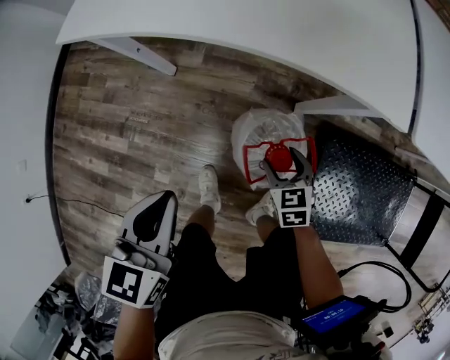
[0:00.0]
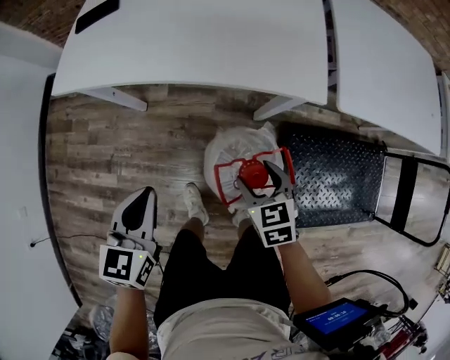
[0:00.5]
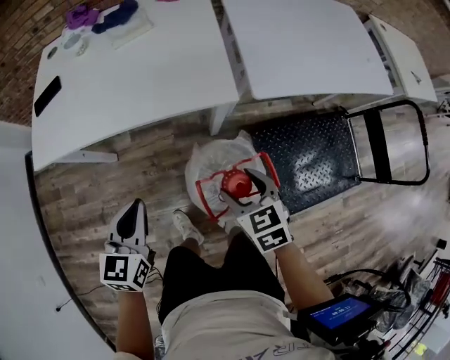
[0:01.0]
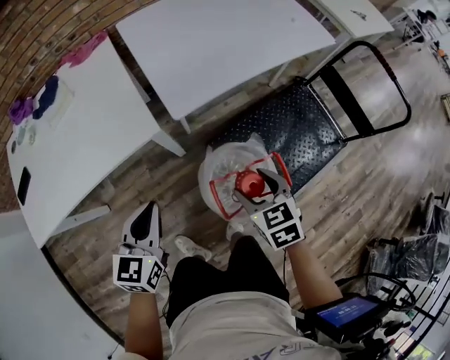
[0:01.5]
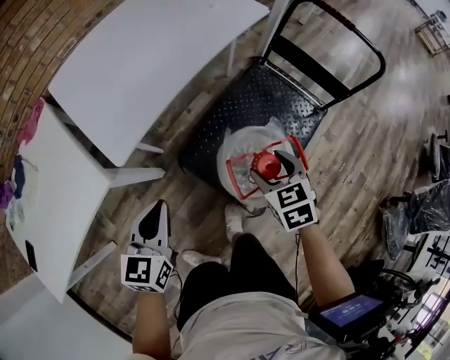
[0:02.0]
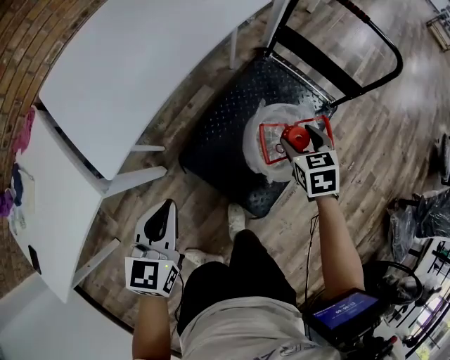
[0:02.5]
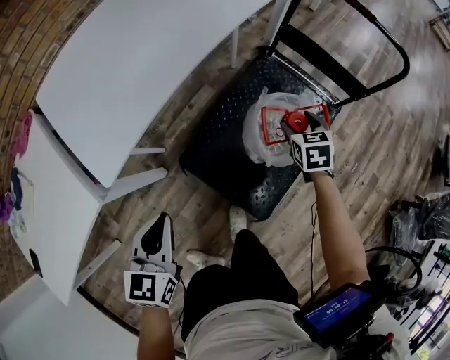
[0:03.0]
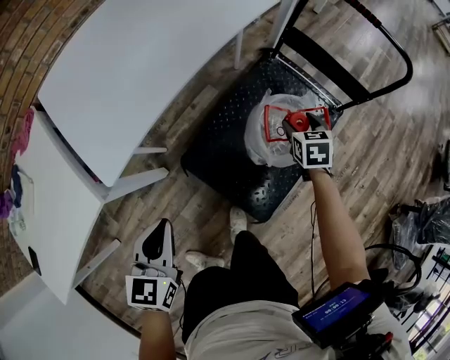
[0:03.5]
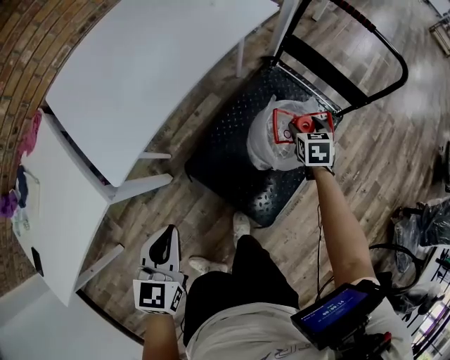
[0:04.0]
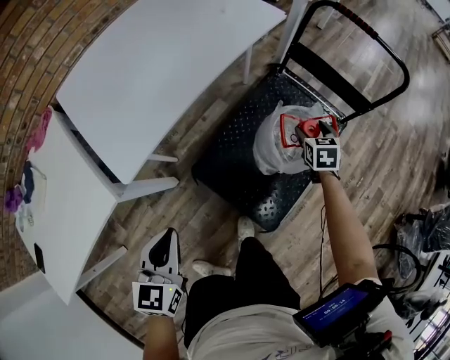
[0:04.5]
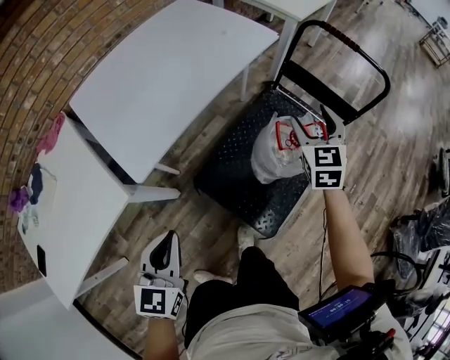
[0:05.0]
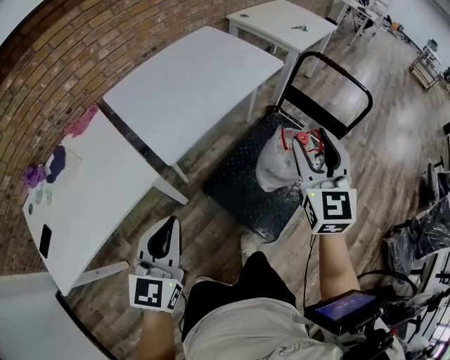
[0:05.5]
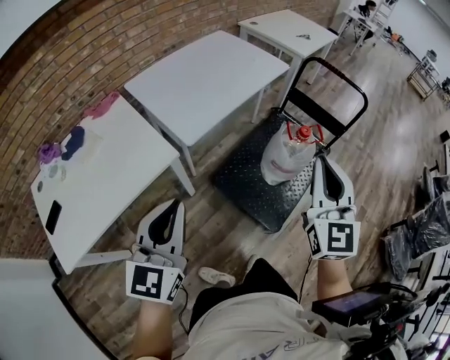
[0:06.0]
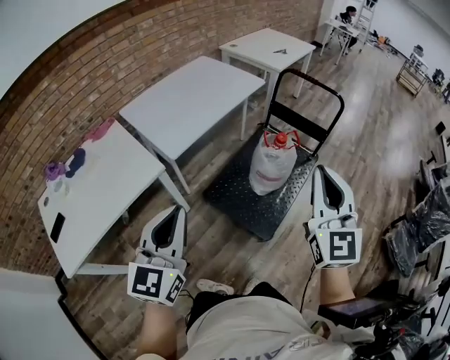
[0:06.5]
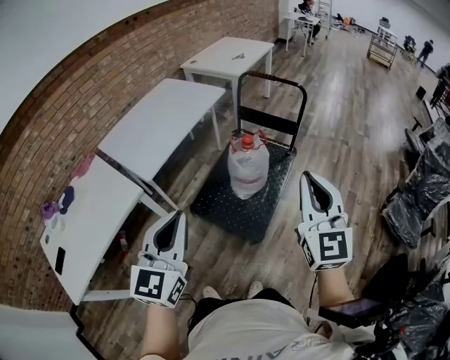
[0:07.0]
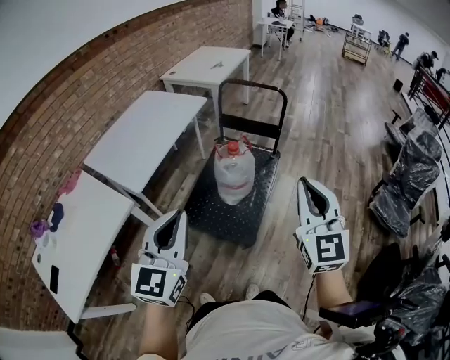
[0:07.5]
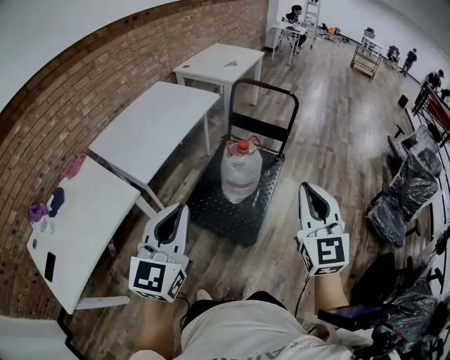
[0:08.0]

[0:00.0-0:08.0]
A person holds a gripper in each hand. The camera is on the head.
0.0 to 2.0 s: The two grippers travel together, roughly 50 cm. The right gripper turns by roughly 60 degrees. Meanwhile the left gripper rotates some 60 degrees.
2.0 to 4.0 s: The right gripper moves forward, to the right and downward, some 25 cm, and rotates some 20 degrees.
4.0 to 6.0 s: The right gripper moves upward and backward, roughly 60 cm, tilts its fingers approximately 50 degrees upward, and closes up. The left gripper goes about 35 cm upward and backward, and changes its angle by approximately 30 degrees.
6.0 to 8.0 s: The right gripper shifts some 20 cm to the right and backward, while the left gripper goes approximately 15 cm to the right.

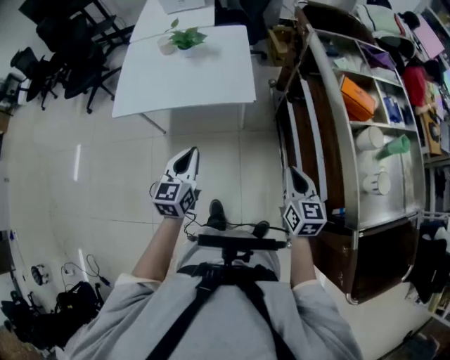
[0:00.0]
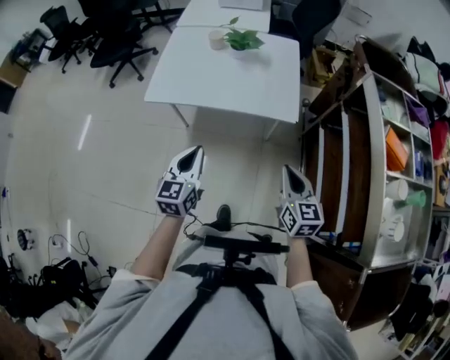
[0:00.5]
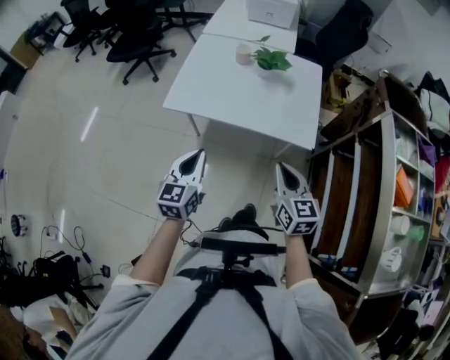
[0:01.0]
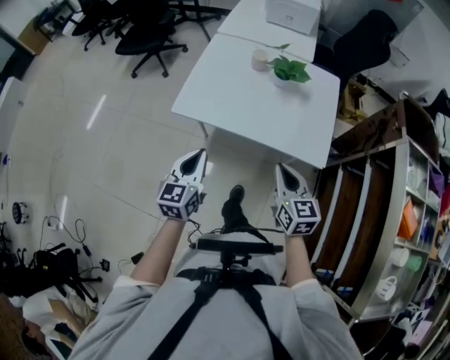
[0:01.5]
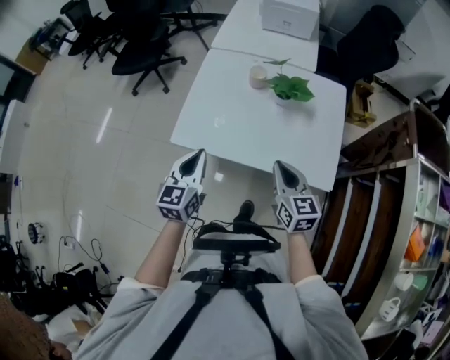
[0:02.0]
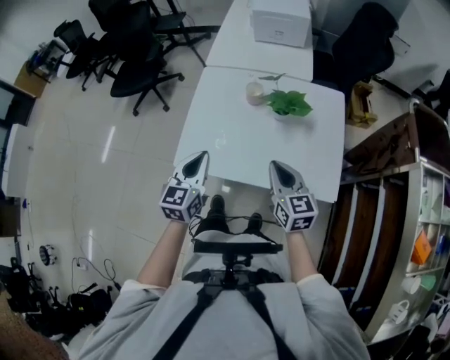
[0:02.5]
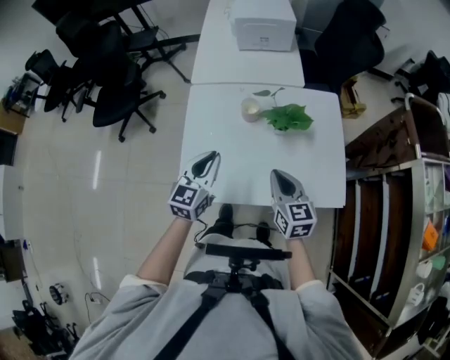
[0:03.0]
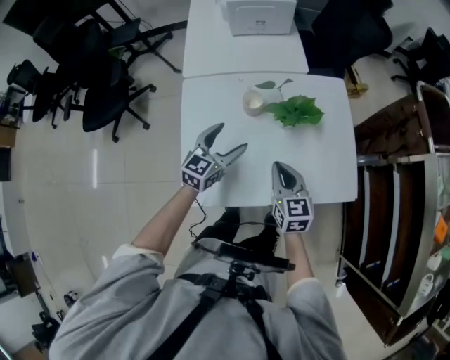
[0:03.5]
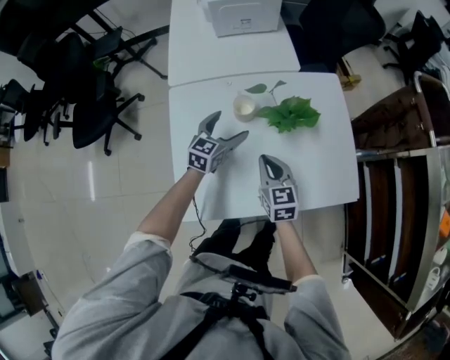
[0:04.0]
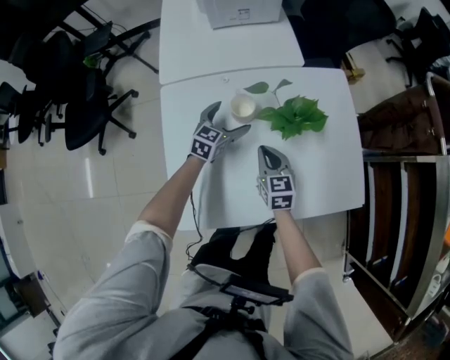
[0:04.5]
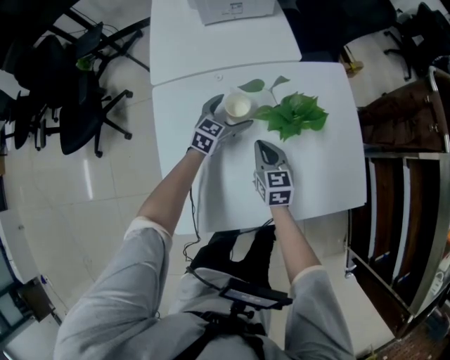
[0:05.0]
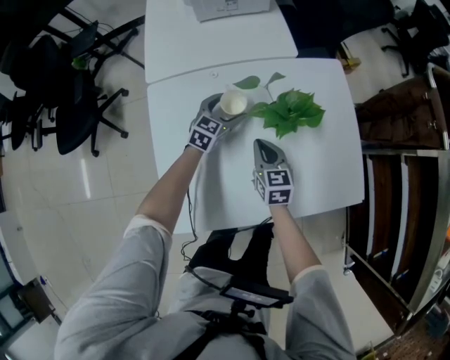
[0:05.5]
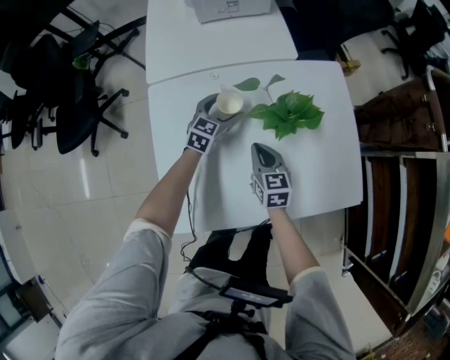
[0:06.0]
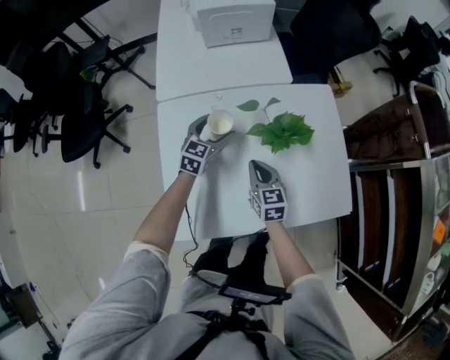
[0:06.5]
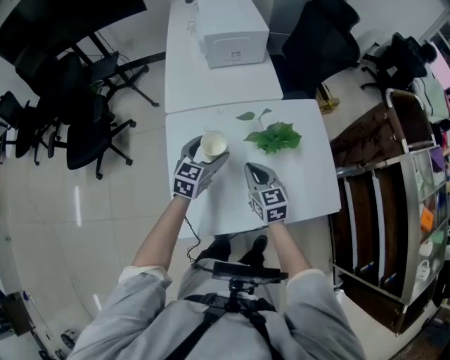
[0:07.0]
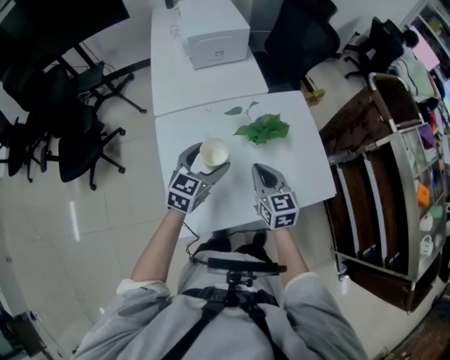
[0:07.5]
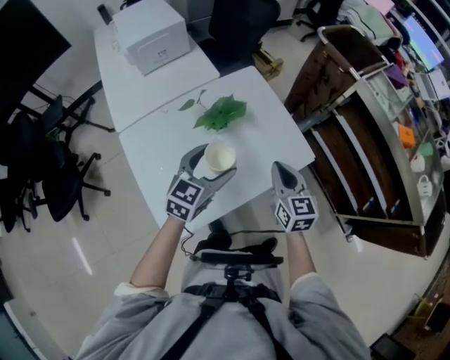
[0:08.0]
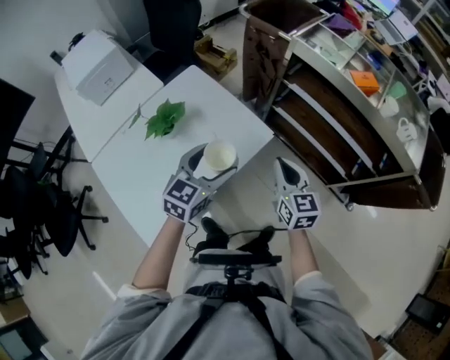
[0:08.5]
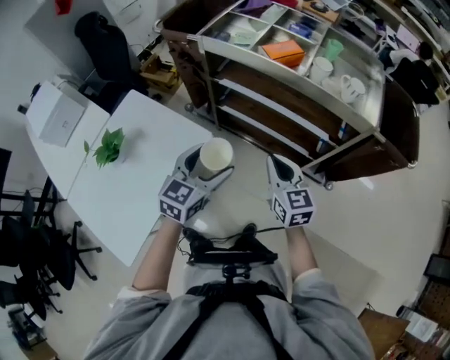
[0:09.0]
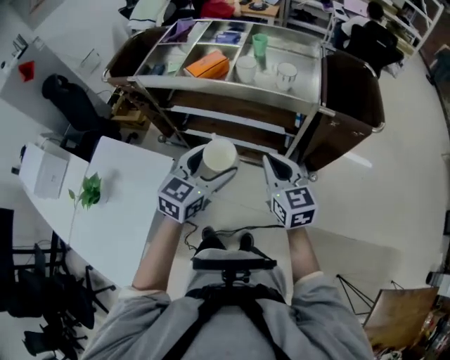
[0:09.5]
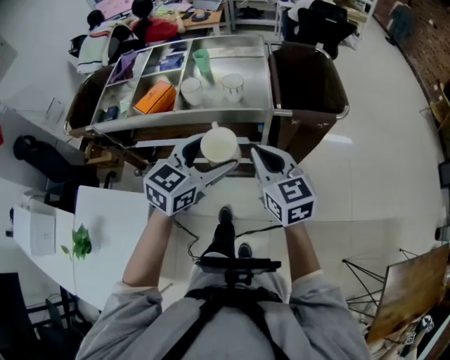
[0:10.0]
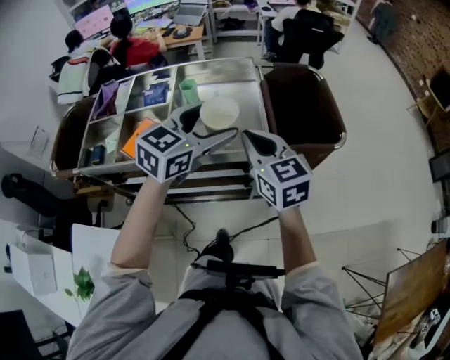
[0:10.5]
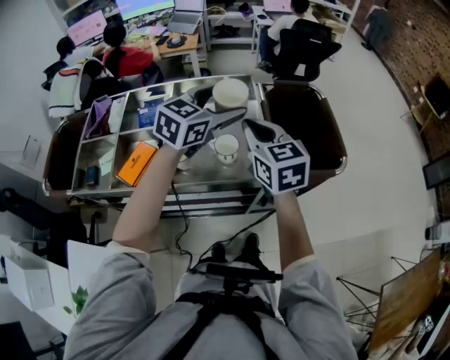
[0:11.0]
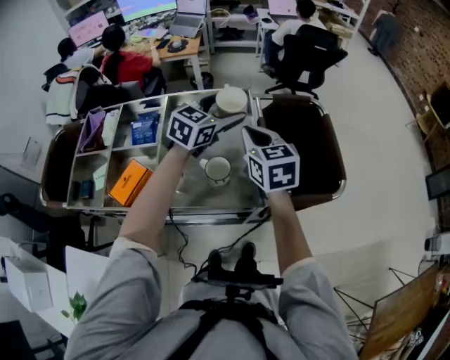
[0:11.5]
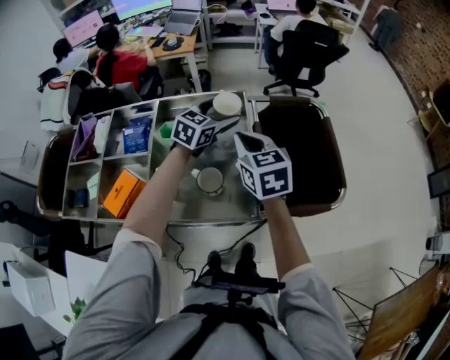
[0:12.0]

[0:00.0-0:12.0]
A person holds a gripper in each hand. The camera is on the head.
0.0 to 2.0 s: Both grippers move forward and to the left, some 40 cm. The right gripper rotates about 20 degrees.
2.0 to 4.0 s: The left gripper shifts by about 40 cm, rotates about 40 degrees, and opens up. Meanwhile the right gripper moves approximately 30 cm, and changes its angle by some 20 degrees.
4.0 to 6.0 s: The right gripper is displaced downward and forward by about 10 cm; the left gripper goes some 15 cm forward and downward.
6.0 to 8.0 s: The left gripper shifts by about 35 cm, and changes its angle by about 20 degrees; the right gripper changes place by about 30 cm, and swivels approximately 30 degrees.
8.0 to 10.0 s: The pair of grippers is taken roughly 70 cm. The right gripper rotates some 40 degrees. The left gripper turns by approximately 60 degrees.
10.0 to 12.0 s: The two grippers go roughly 40 cm forward.

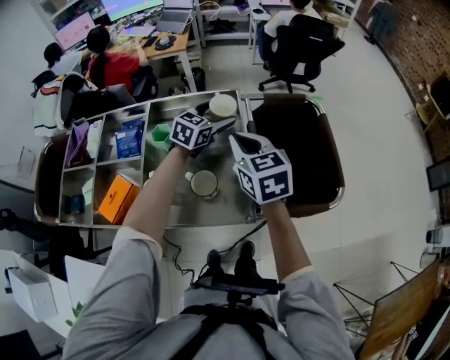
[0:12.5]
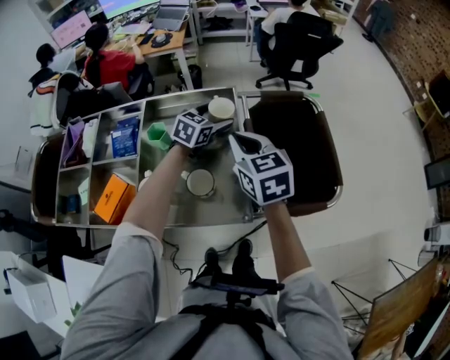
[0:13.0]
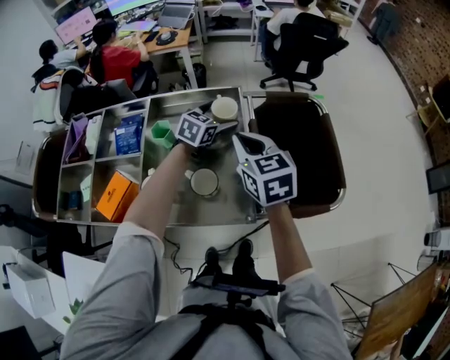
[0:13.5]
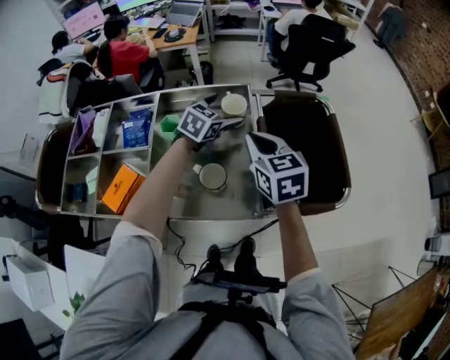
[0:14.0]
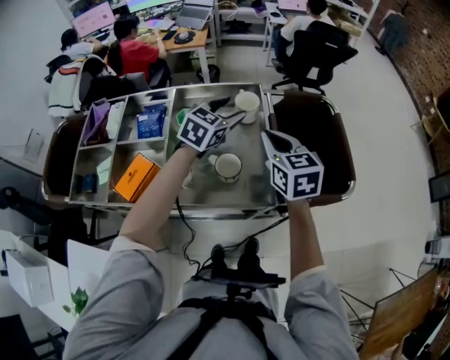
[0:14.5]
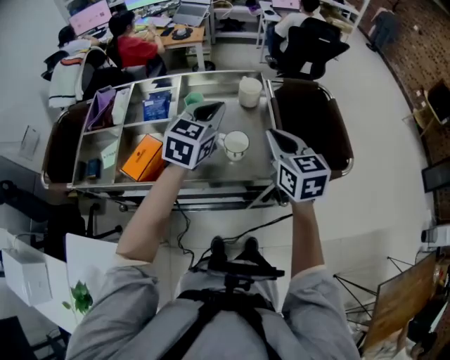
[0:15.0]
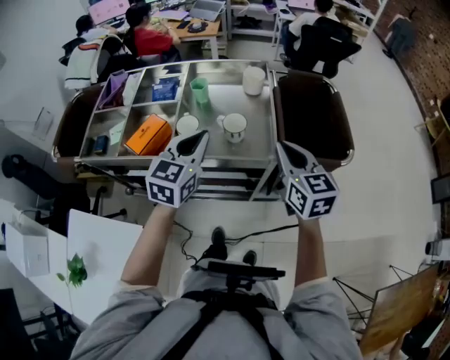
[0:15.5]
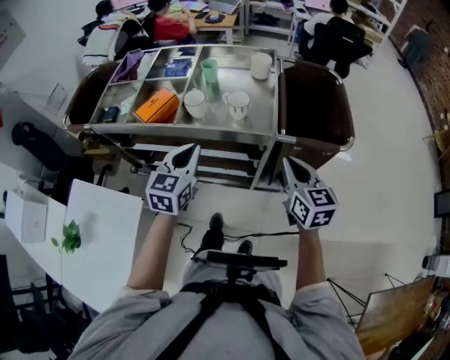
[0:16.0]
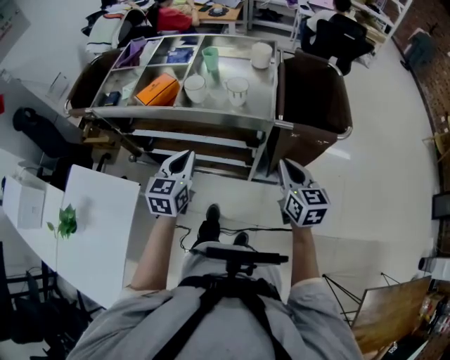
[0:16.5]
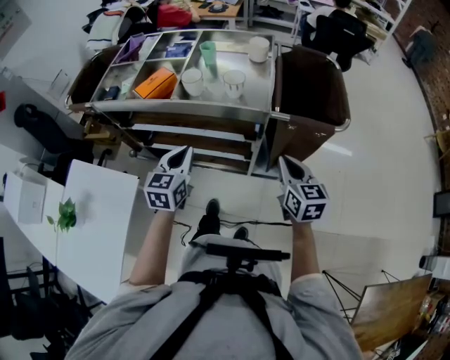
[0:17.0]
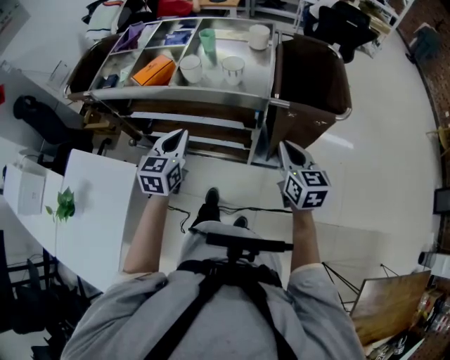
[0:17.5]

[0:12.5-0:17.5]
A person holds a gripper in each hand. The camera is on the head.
12.5 to 15.0 s: The left gripper goes some 25 cm backward, upward and to the left, and closes its fingers, while the right gripper moves backward, about 10 cm.
15.0 to 17.5 s: Both grippers travel together backward and downward, roughly 30 cm. The left gripper changes its angle by roughly 30 degrees.

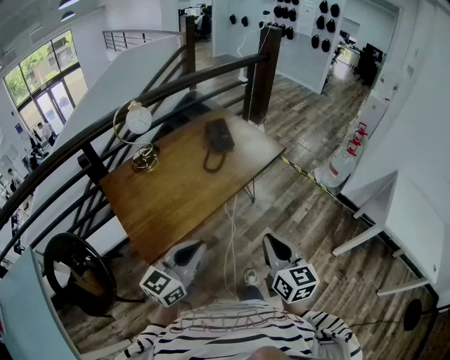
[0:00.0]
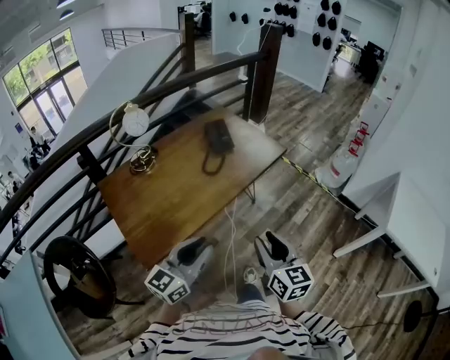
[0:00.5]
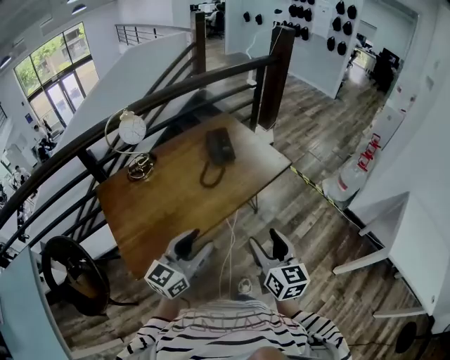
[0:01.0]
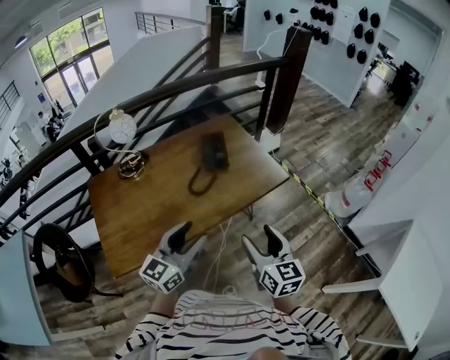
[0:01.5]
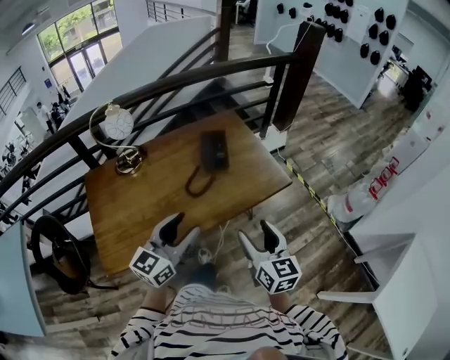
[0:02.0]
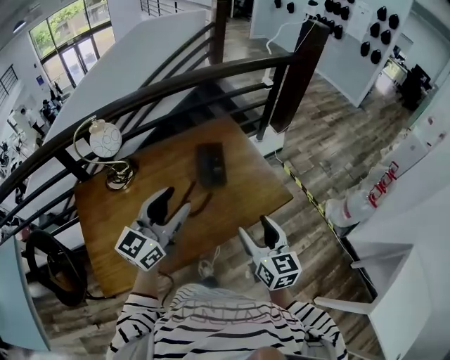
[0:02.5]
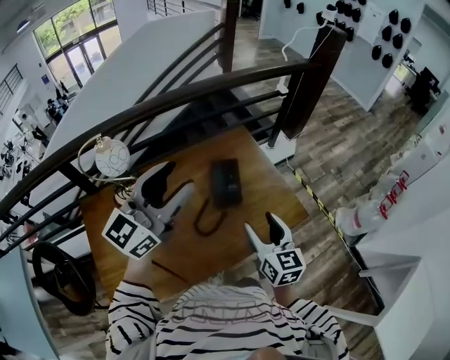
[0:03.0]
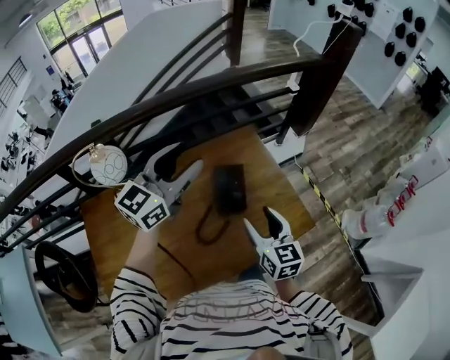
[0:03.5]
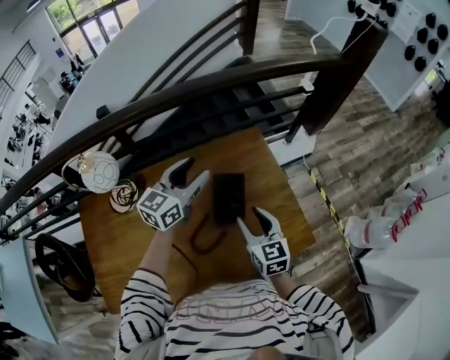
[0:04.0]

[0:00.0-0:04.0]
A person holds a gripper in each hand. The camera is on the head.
0.0 to 2.0 s: Both grippers move forward, some 35 cm. The right gripper opens. Meanwhile the left gripper opens up.
2.0 to 4.0 s: Both grippers are carried forward, approximately 50 cm.
